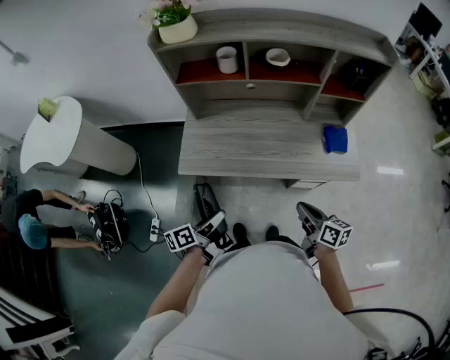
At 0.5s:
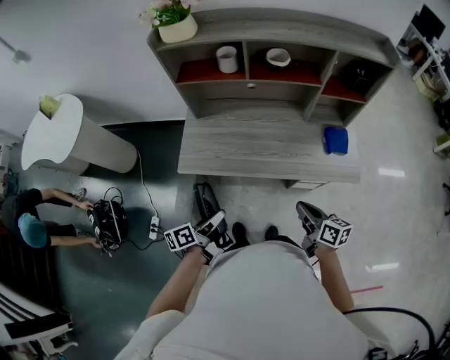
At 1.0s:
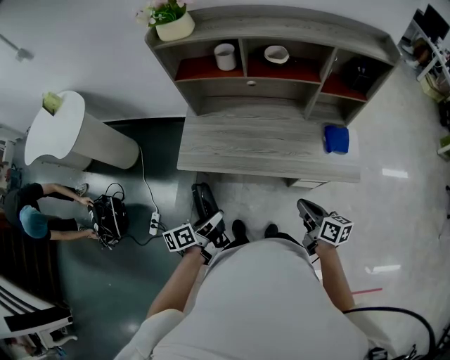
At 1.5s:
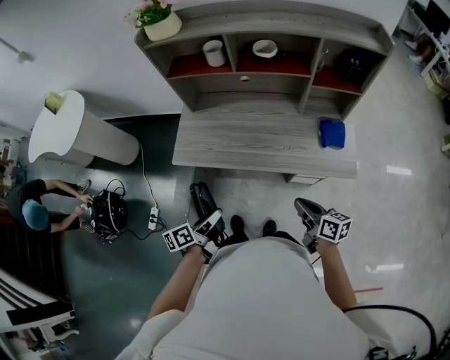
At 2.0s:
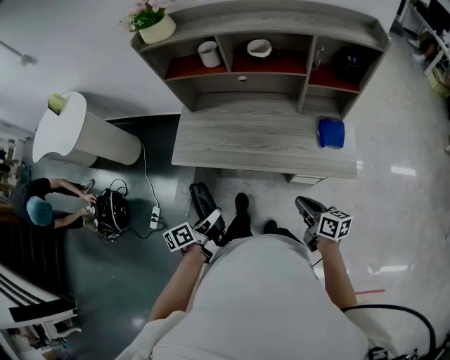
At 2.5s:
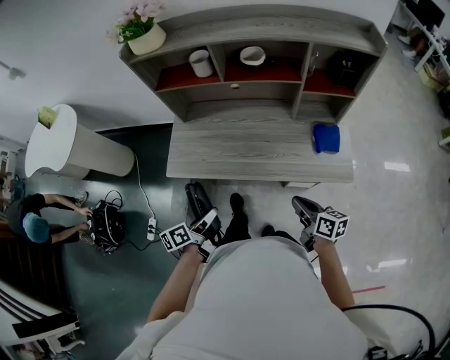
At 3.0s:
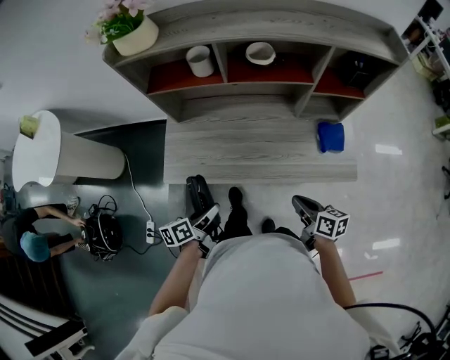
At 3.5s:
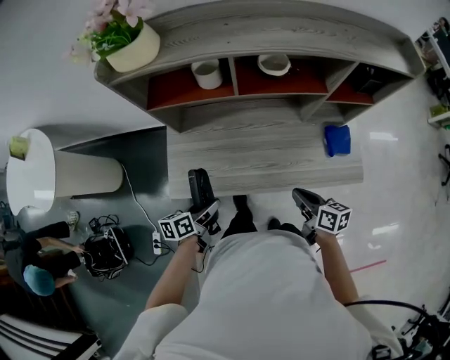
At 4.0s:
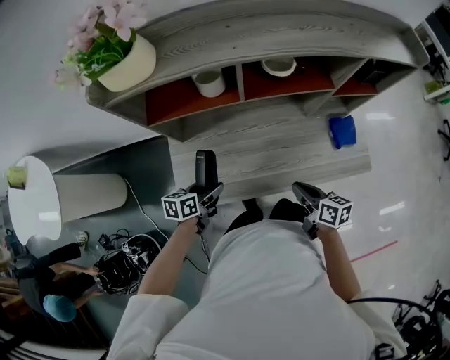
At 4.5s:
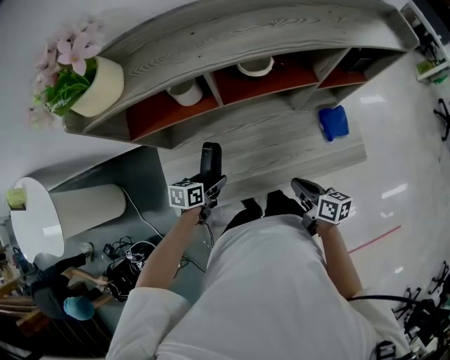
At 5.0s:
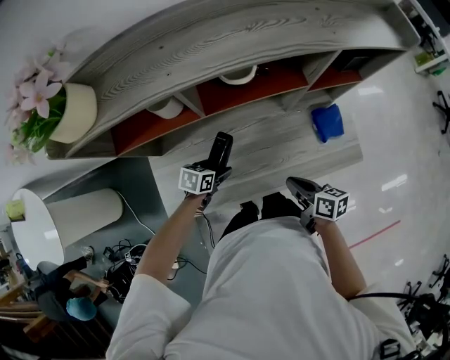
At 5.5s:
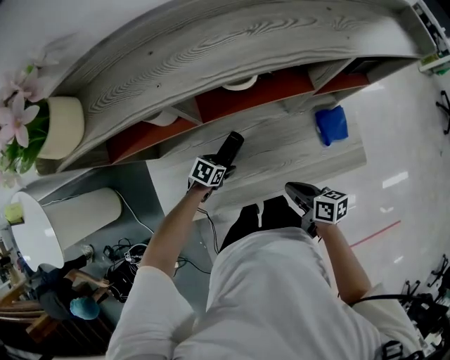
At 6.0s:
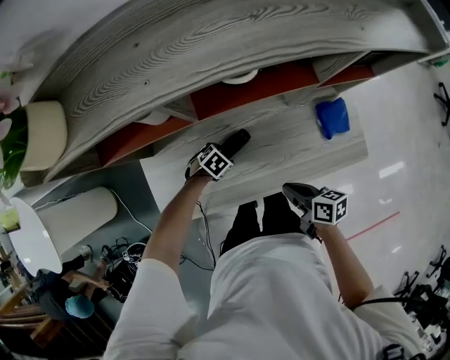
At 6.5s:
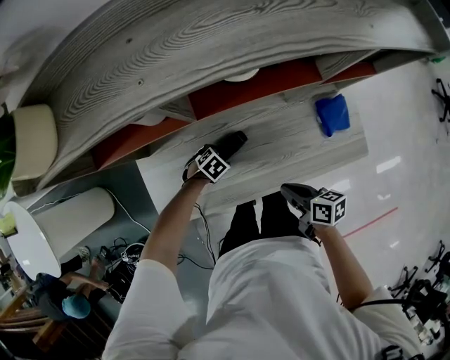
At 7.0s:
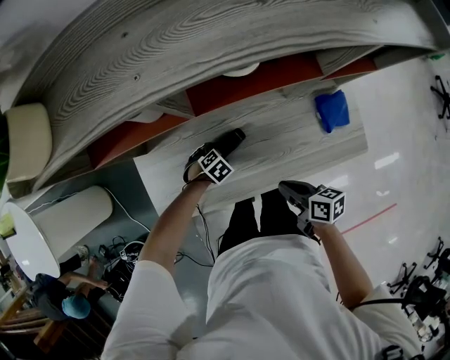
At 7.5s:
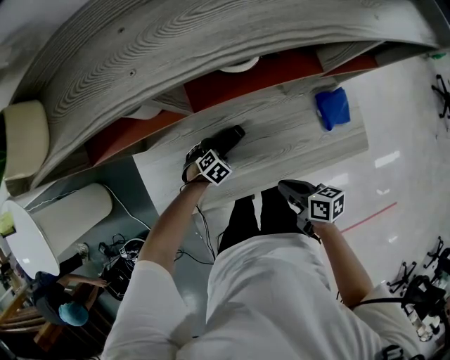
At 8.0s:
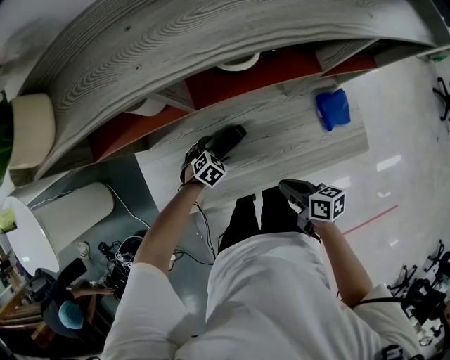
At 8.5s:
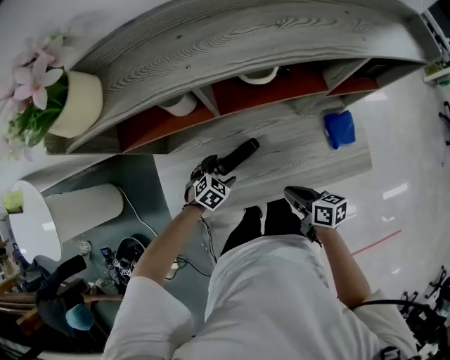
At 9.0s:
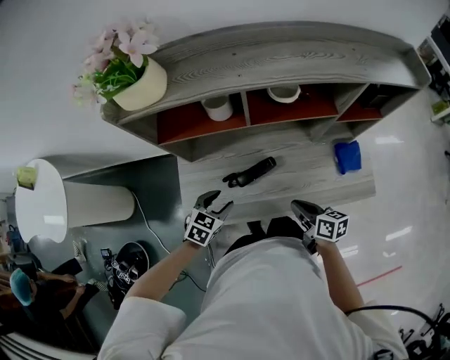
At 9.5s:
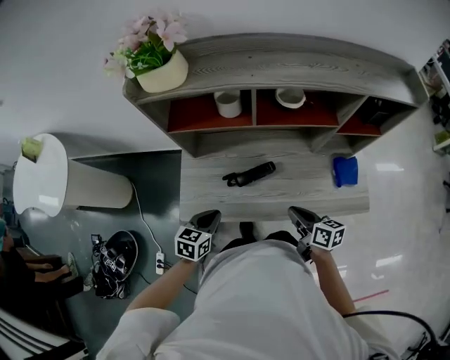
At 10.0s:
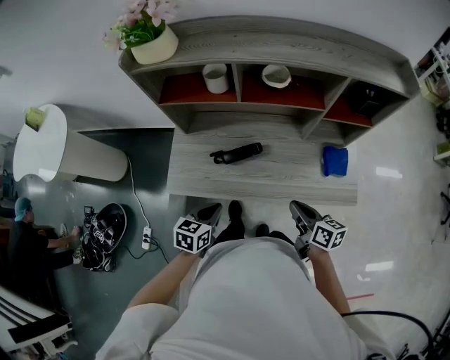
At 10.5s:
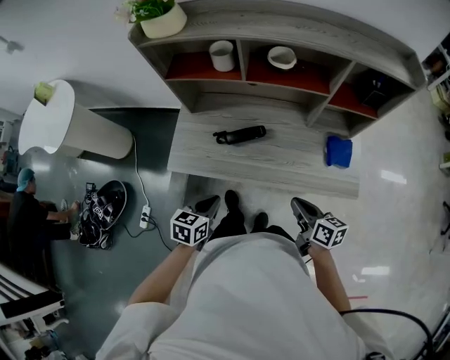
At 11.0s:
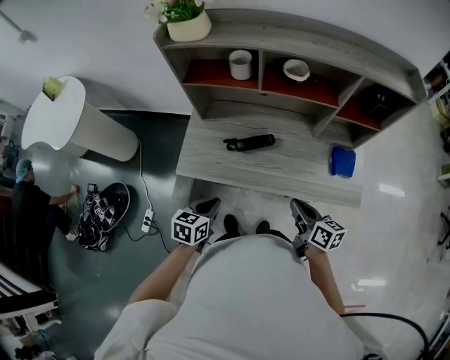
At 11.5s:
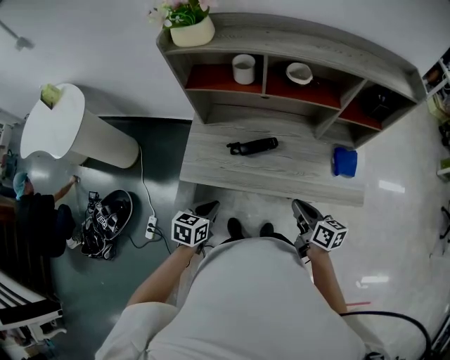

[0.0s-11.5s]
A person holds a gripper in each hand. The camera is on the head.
0.0s to 2.0s: Both grippers travel together to the right, approximately 10 cm.
2.0s to 4.0s: The right gripper goes roughly 25 cm forward and to the left. The left gripper goes about 30 cm forward, and rotates some 40 degrees.
4.0s to 6.0s: The left gripper shifts by some 25 cm, and tilts its fingers approximately 30 degrees downward. The right gripper is displaced downward by about 5 cm.
6.0s to 7.5s: The grippers move only a little.
7.5s to 9.5s: The left gripper is displaced upward by some 25 cm, tips its fingers upward by about 40 degrees, and closes up; the right gripper moves upward, about 10 cm.
9.5s to 11.5s: The grippers both shift backward by roughly 10 cm.

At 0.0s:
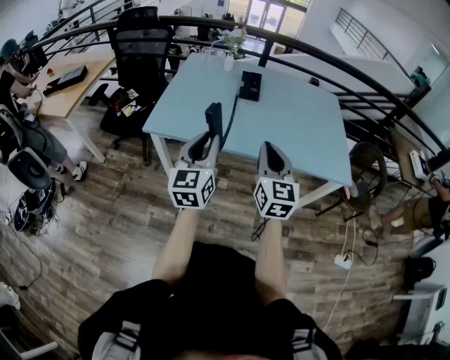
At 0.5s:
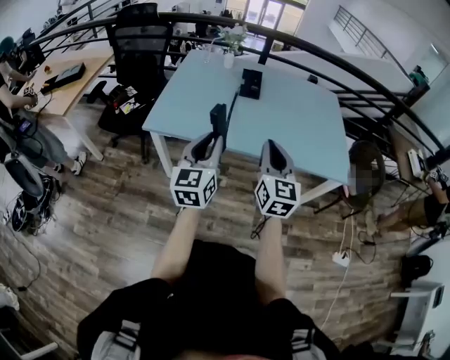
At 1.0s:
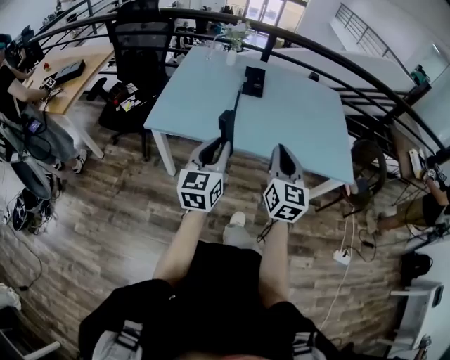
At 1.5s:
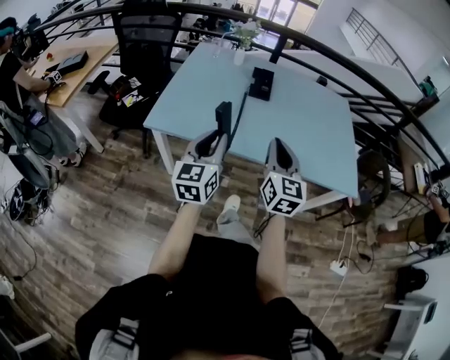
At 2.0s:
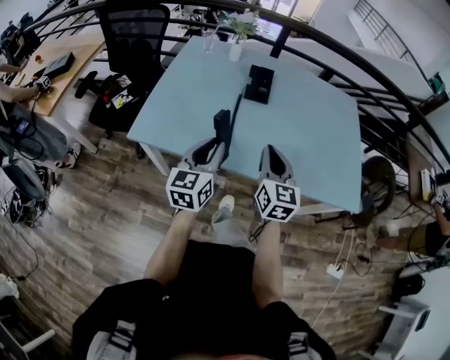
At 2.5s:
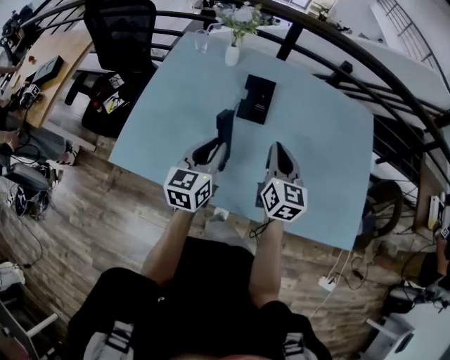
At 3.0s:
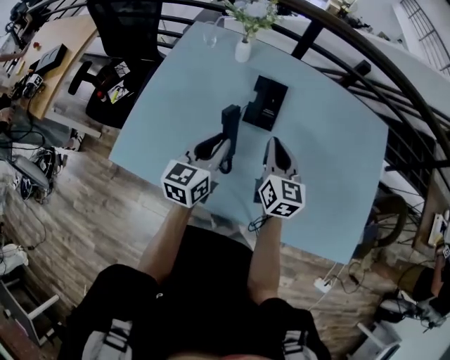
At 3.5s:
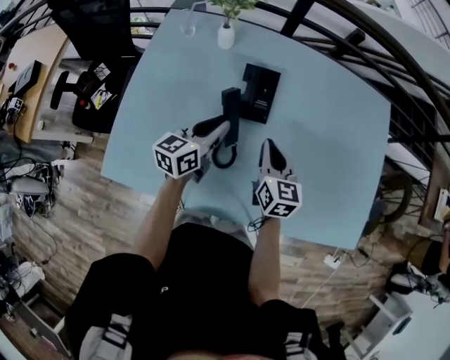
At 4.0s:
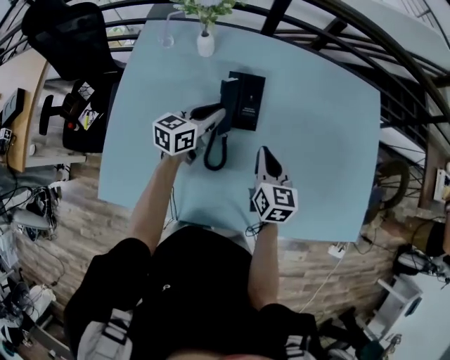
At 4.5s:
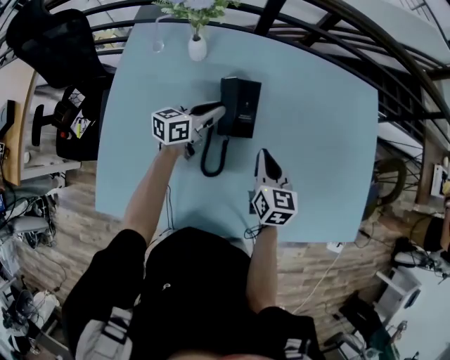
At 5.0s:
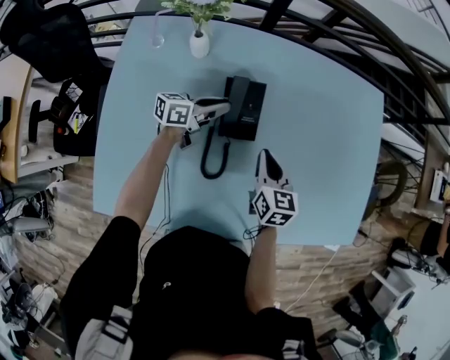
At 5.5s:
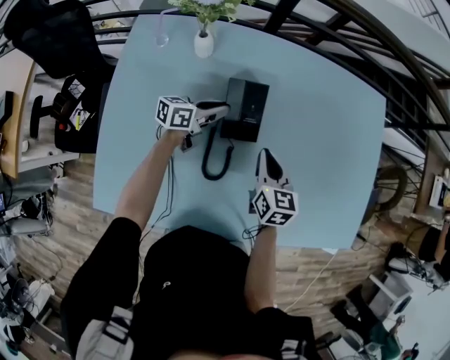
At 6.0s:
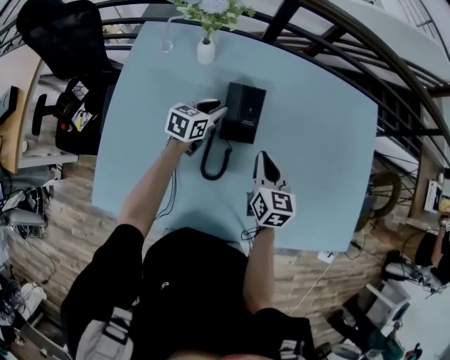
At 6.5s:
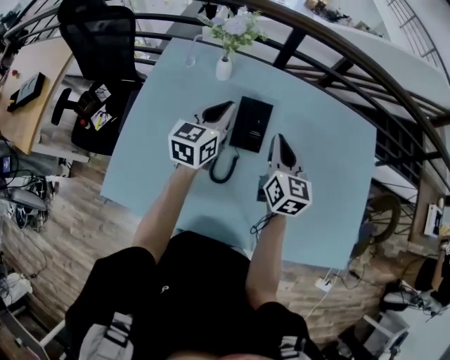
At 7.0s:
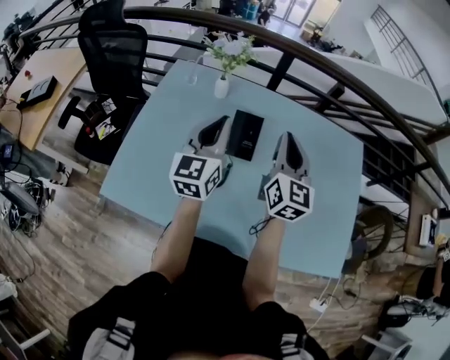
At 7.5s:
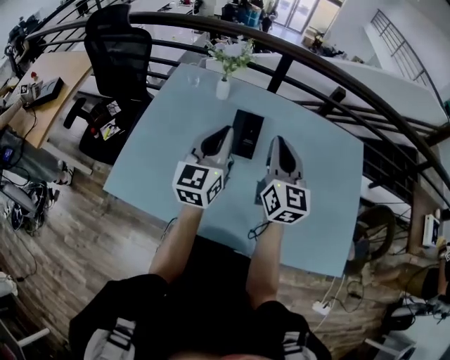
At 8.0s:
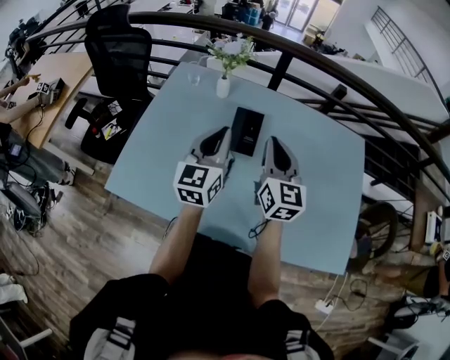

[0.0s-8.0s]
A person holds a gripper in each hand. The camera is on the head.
0.0s to 2.0s: The grippers both shift forward and downward by about 20 cm.
2.0s to 4.0s: The right gripper moves forward and downward, about 30 cm, and rotates approximately 20 degrees; the left gripper is displaced forward by some 40 cm, and turns by some 30 degrees.
4.0s to 6.0s: The left gripper shifts approximately 10 cm downward and forward.
6.0s to 8.0s: The left gripper heads upward and backward, covering roughly 35 cm, changes its angle by some 50 degrees, and closes; the right gripper moves upward, roughly 20 cm, and rotates approximately 30 degrees.

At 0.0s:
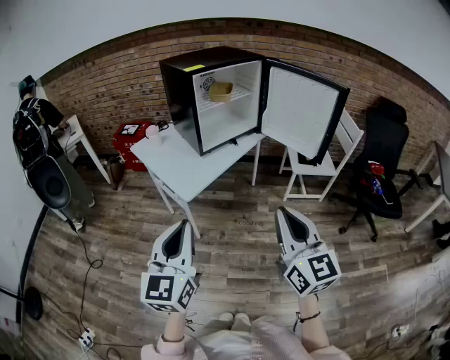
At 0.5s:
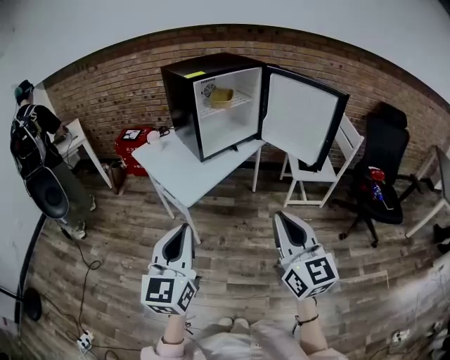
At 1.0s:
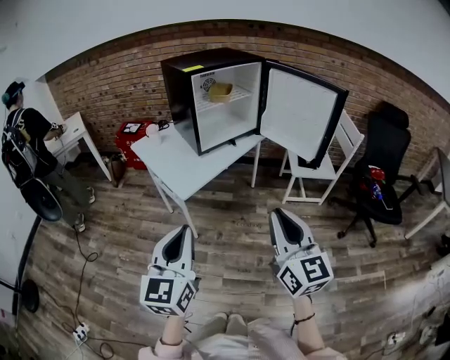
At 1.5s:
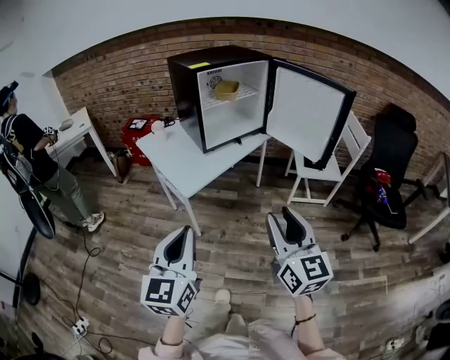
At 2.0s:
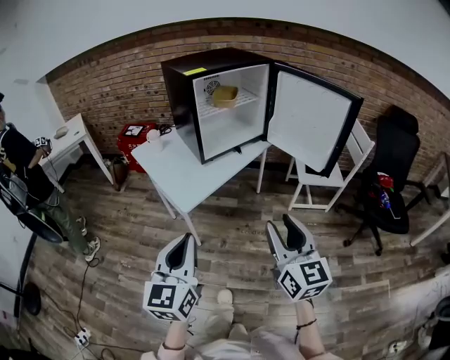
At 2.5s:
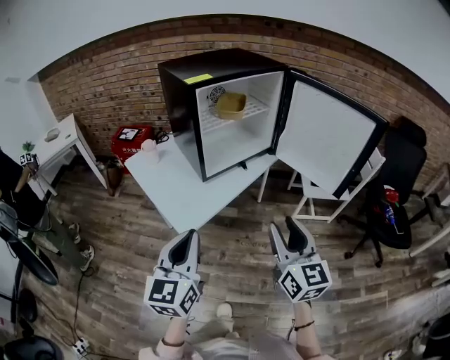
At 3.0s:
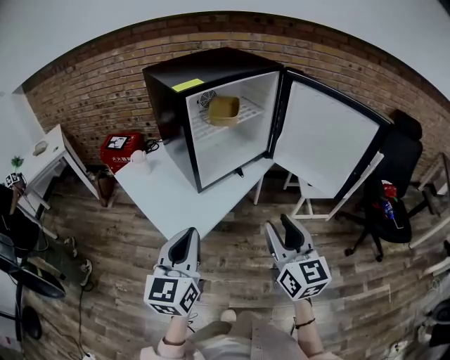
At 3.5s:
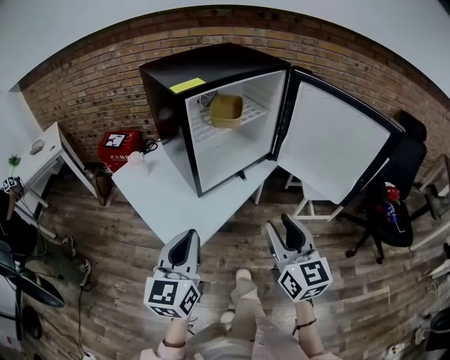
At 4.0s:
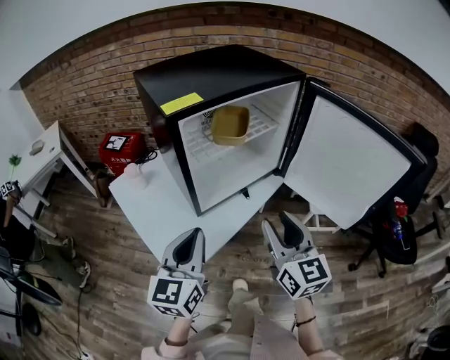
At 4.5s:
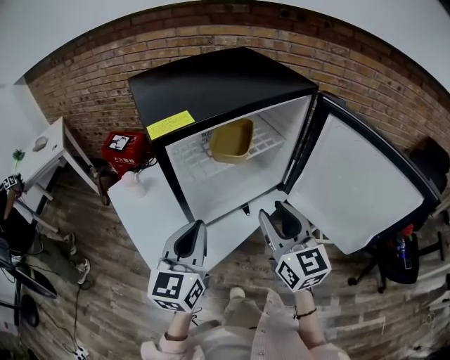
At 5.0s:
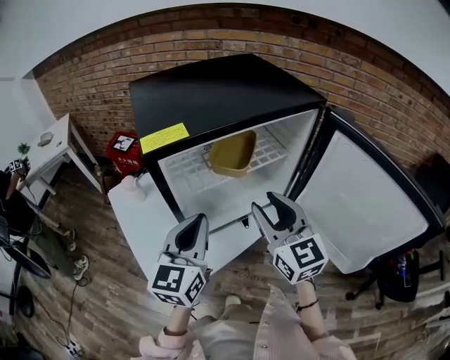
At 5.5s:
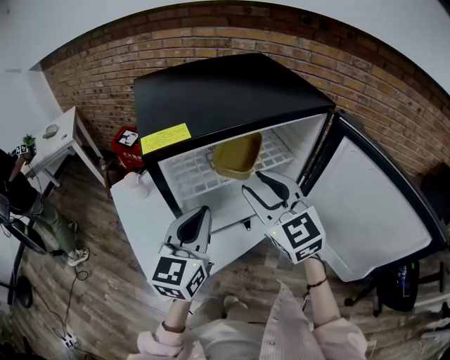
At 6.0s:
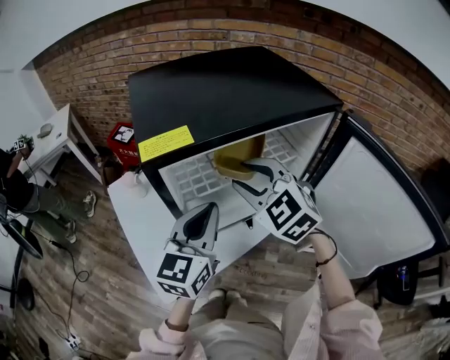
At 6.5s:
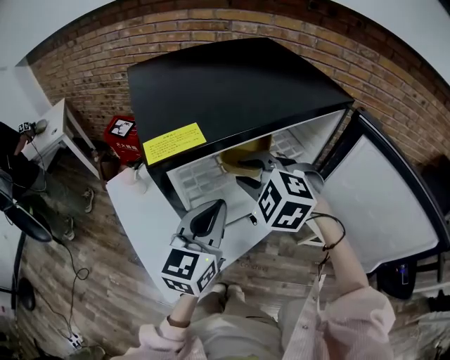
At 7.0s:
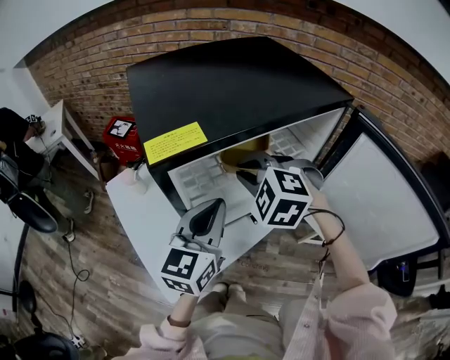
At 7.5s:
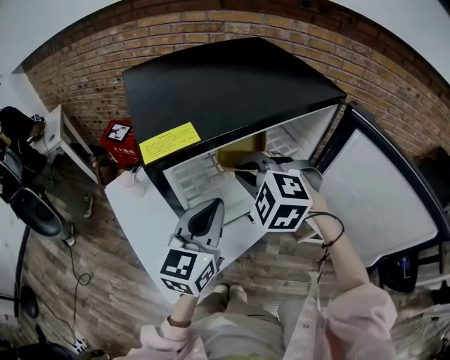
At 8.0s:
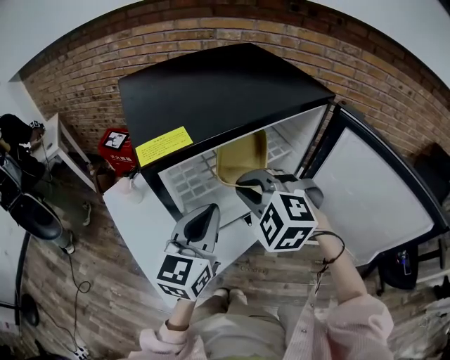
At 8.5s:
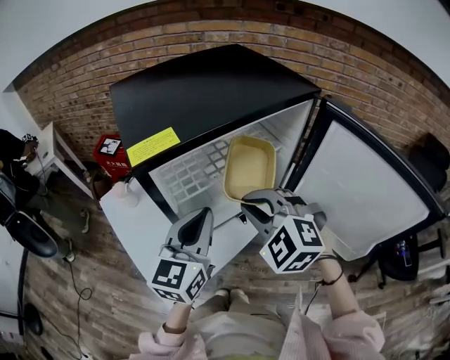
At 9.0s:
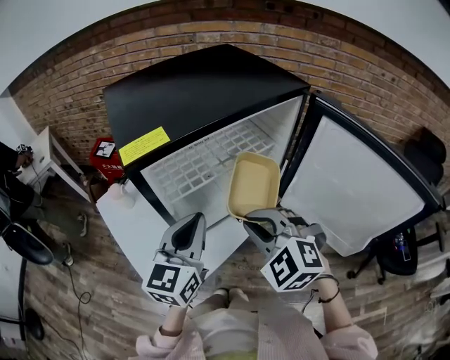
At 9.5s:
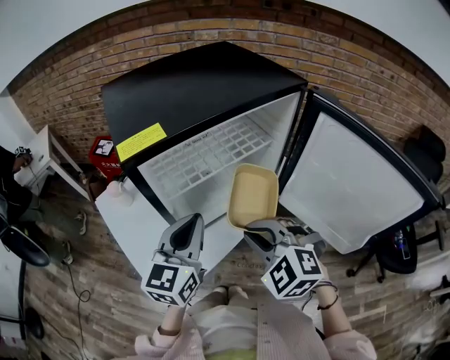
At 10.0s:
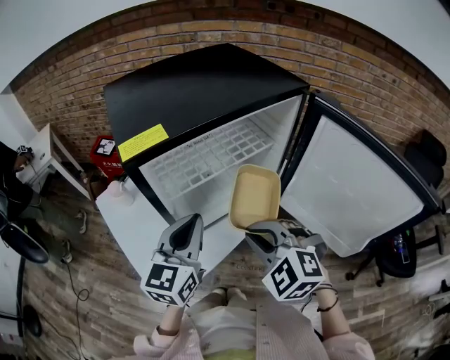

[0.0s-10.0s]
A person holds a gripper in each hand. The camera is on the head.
0.0s to 2.0s: The right gripper travels forward and downward by some 10 cm, and opens; the left gripper shifts by about 5 cm.
2.0s to 4.0s: Both grippers move forward, approximately 35 cm.
4.0s to 6.0s: The right gripper travels forward by about 25 cm, and swivels about 60 degrees, while the left gripper heads forward and to the right, covering roughly 20 cm.
6.0s to 8.0s: The right gripper rotates some 20 degrees, and closes its fingers.
8.0s to 10.0s: The right gripper moves backward, some 10 cm.
